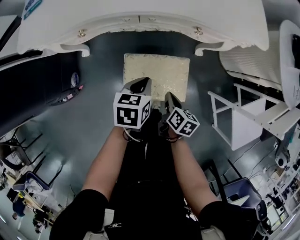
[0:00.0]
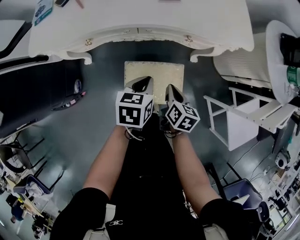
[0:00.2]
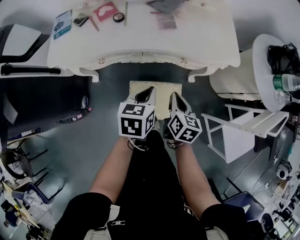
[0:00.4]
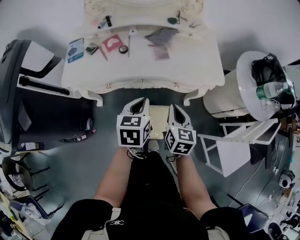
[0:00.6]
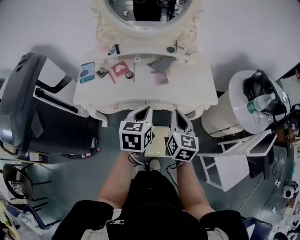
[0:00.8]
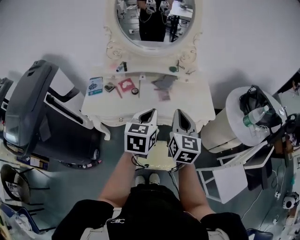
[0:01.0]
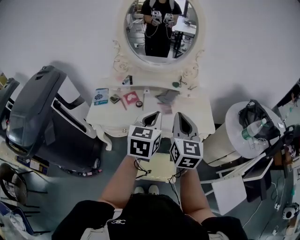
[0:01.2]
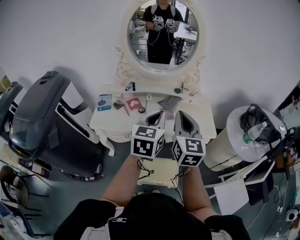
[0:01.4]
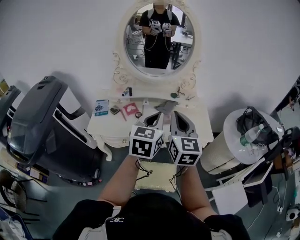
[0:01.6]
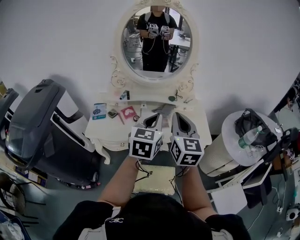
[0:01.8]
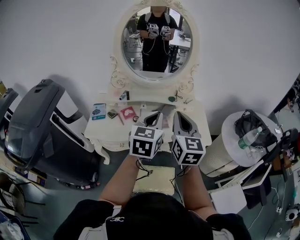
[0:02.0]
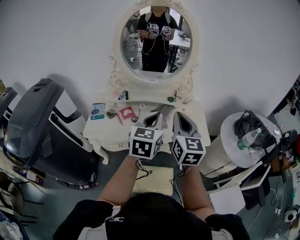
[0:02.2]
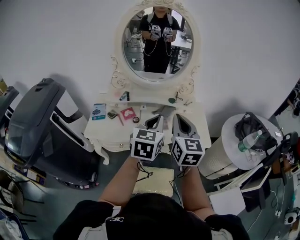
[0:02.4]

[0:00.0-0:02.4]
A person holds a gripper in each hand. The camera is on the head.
0:00.0 to 0:01.2: Both grippers travel together upward, about 50 cm. The left gripper angles its fingers upward, by about 30 degrees. The right gripper points its fingers roughly 40 degrees further upward.
0:01.2 to 0:02.4: The left gripper shifts by about 5 cm. Meanwhile the right gripper moves about 5 cm.

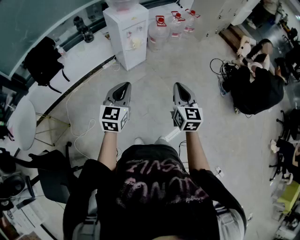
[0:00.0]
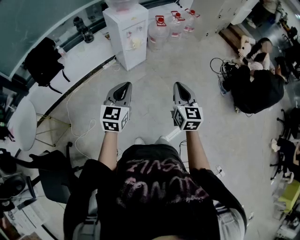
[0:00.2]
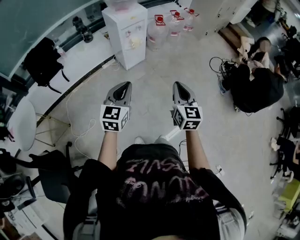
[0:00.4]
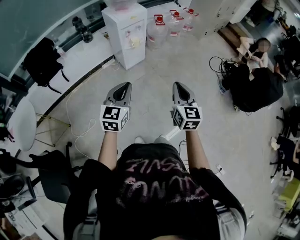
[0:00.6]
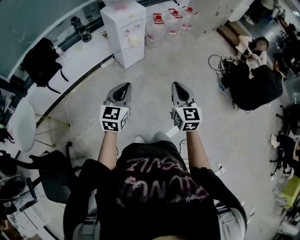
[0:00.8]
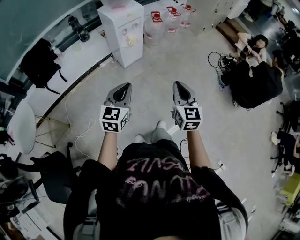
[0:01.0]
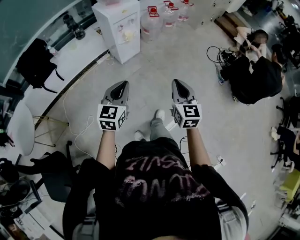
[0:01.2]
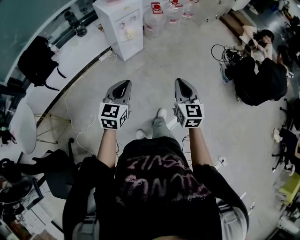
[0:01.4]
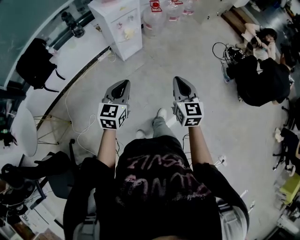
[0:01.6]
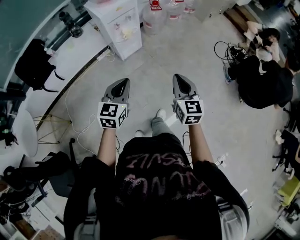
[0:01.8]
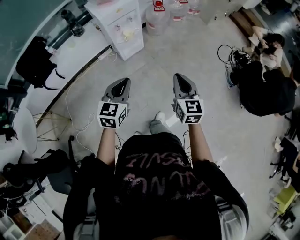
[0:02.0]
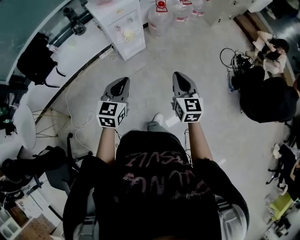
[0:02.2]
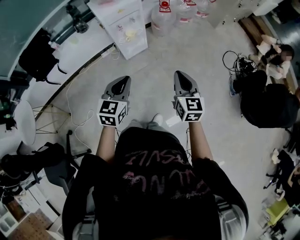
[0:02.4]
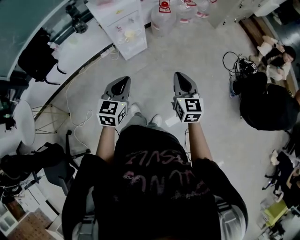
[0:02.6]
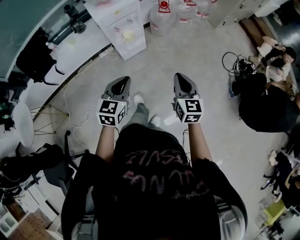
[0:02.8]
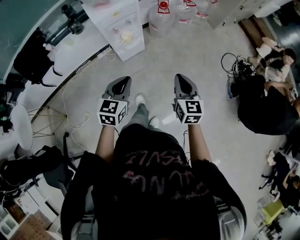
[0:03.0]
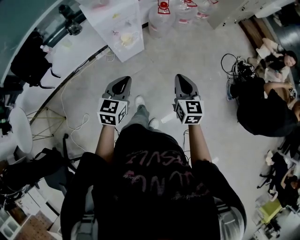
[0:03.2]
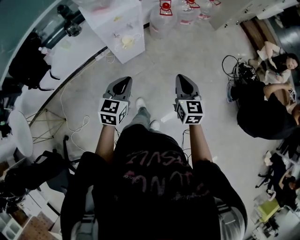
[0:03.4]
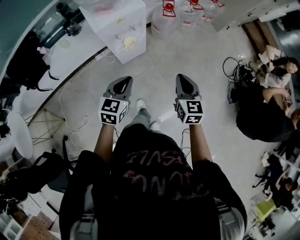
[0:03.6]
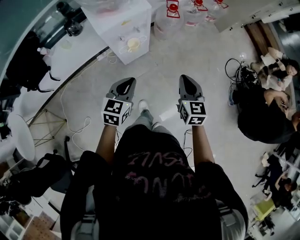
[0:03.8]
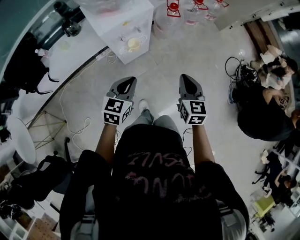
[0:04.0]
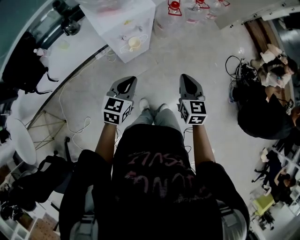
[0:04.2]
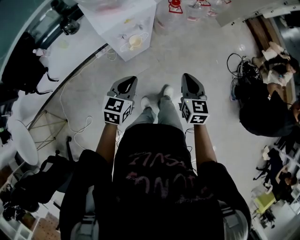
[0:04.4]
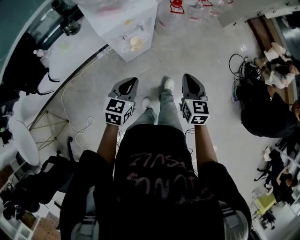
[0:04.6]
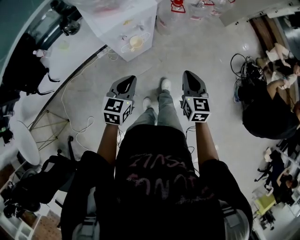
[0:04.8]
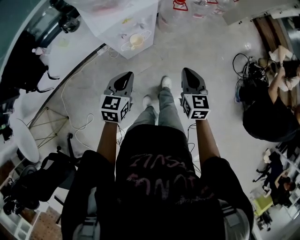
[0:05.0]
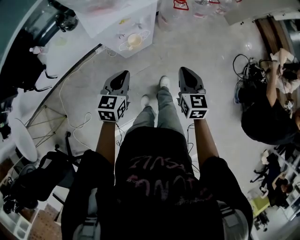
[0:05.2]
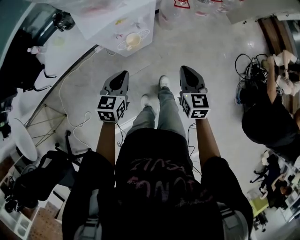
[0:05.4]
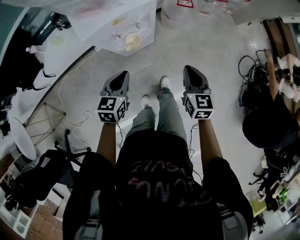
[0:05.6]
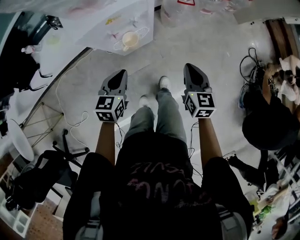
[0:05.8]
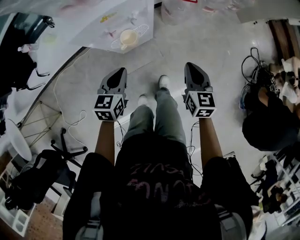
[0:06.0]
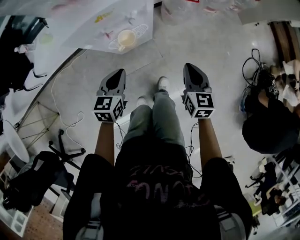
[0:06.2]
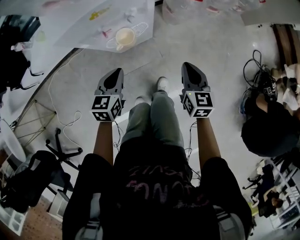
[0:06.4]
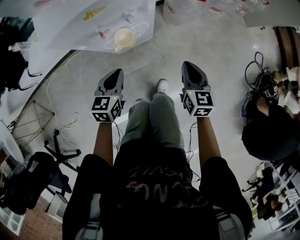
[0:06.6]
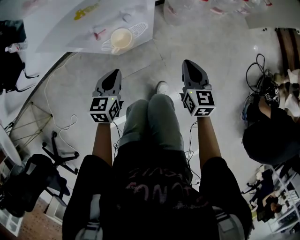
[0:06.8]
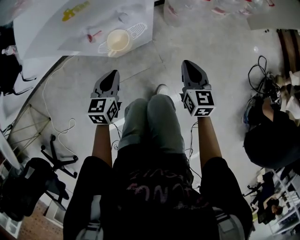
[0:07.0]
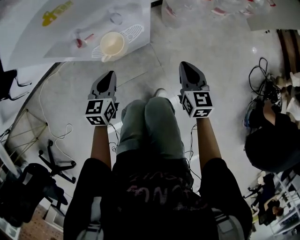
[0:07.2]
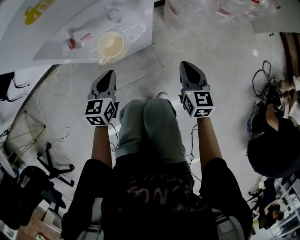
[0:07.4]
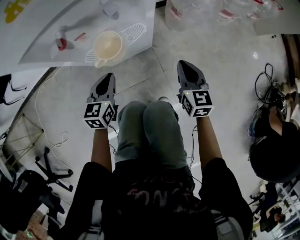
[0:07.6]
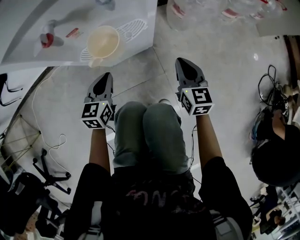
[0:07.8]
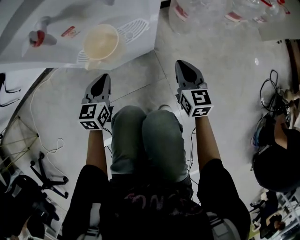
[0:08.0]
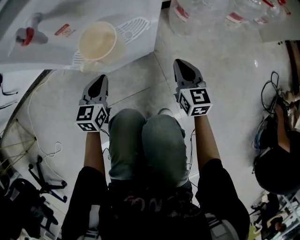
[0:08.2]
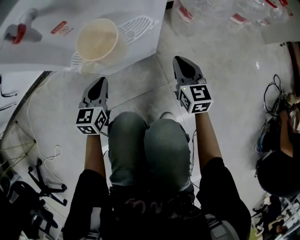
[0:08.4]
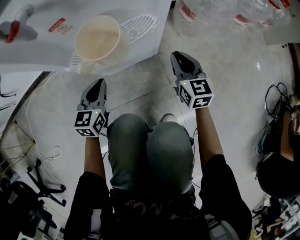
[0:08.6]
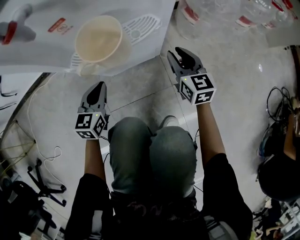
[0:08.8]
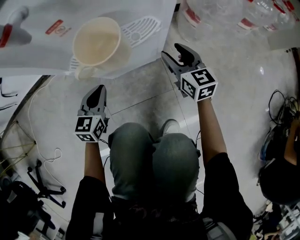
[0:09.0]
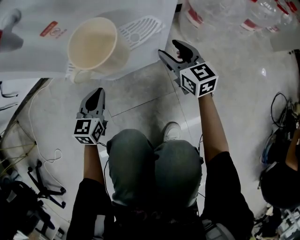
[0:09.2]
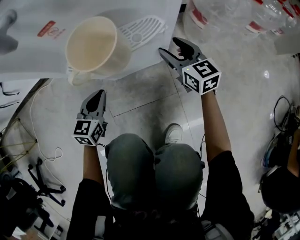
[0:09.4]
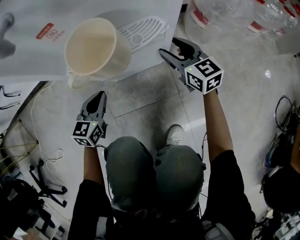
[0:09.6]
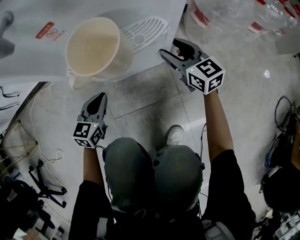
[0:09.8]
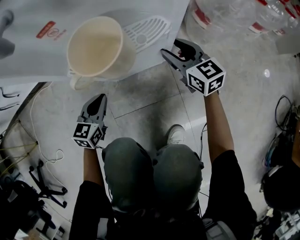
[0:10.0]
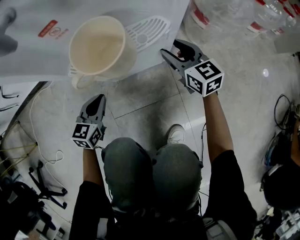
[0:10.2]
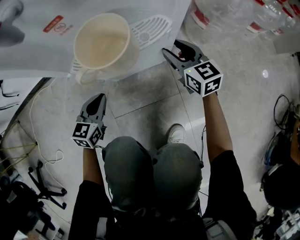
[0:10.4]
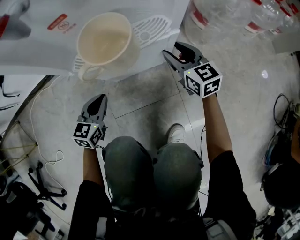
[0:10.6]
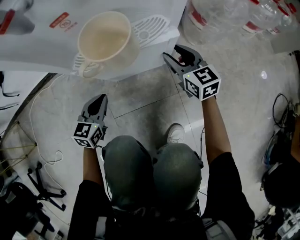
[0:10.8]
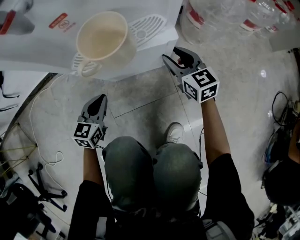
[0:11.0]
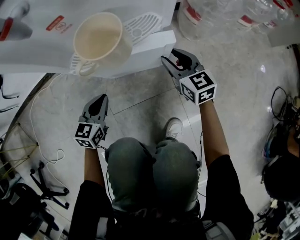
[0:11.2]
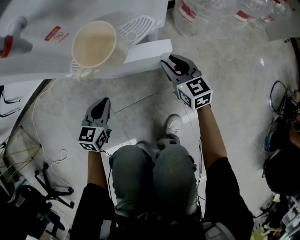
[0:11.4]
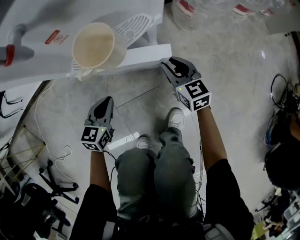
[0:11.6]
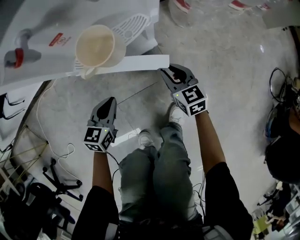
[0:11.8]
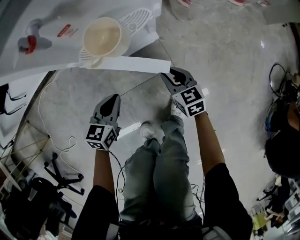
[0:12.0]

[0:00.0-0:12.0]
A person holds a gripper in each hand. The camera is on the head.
0:00.0 to 0:01.6: The two grippers go some 10 cm forward.
0:01.6 to 0:03.0: The right gripper travels forward by about 20 cm, while the left gripper shifts some 20 cm forward and to the right.
0:03.0 to 0:04.4: The two grippers go about 20 cm forward, to the left and downward.
0:04.4 to 0:06.0: The grippers both shift downward and forward by approximately 20 cm.
0:06.0 to 0:07.6: Both grippers move downward, about 30 cm.
0:07.6 to 0:09.0: The left gripper goes some 15 cm downward and to the left. Meanwhile the right gripper moves downward, forward and to the left, some 20 cm, and opens.
0:09.0 to 0:10.4: The grippers stay close to where they were, moving slightly.
0:10.4 to 0:12.0: The left gripper travels upward, backward and to the right by some 15 cm. Meanwhile the right gripper travels backward by roughly 20 cm, and closes.

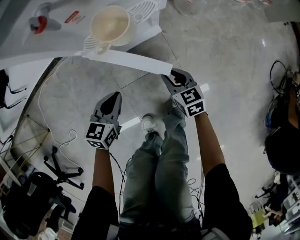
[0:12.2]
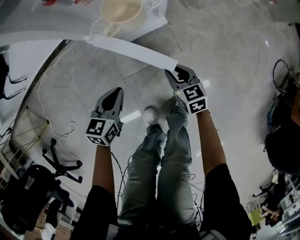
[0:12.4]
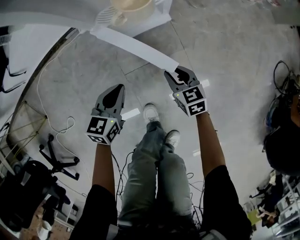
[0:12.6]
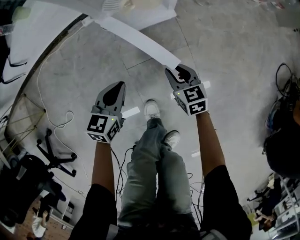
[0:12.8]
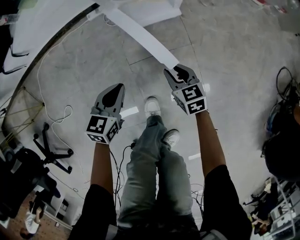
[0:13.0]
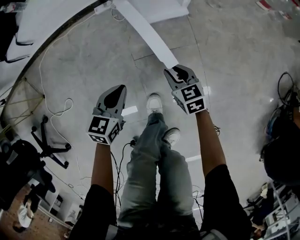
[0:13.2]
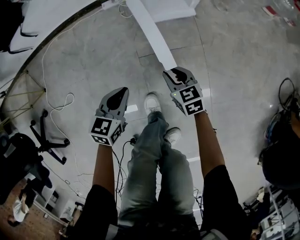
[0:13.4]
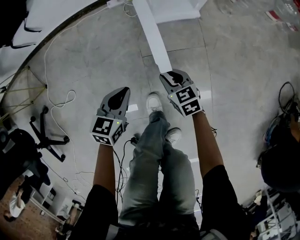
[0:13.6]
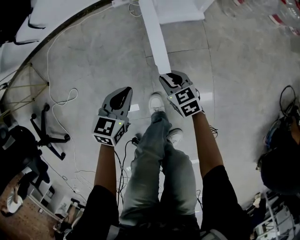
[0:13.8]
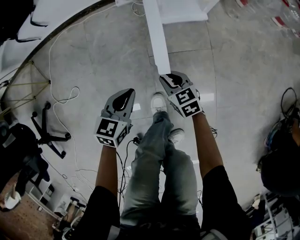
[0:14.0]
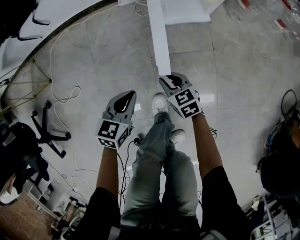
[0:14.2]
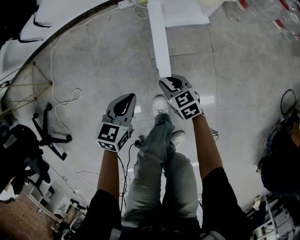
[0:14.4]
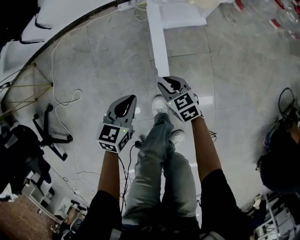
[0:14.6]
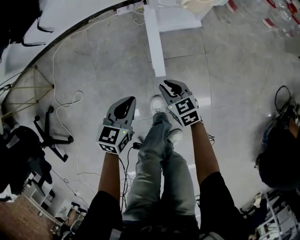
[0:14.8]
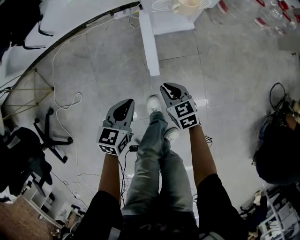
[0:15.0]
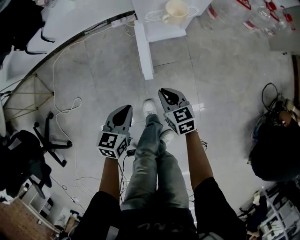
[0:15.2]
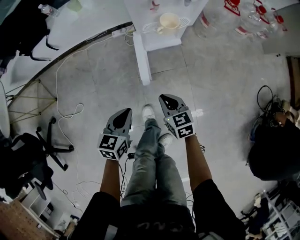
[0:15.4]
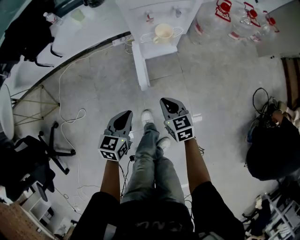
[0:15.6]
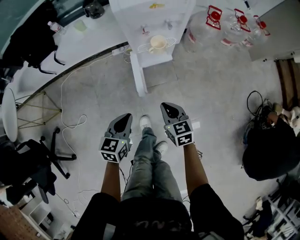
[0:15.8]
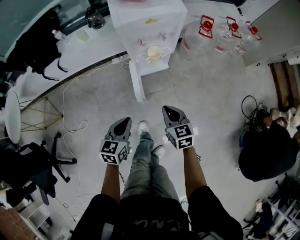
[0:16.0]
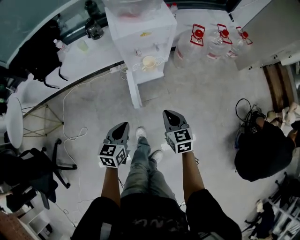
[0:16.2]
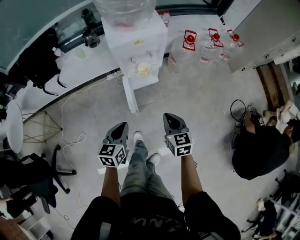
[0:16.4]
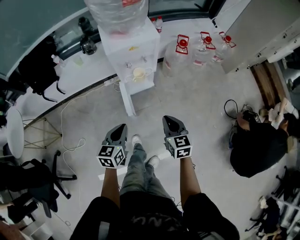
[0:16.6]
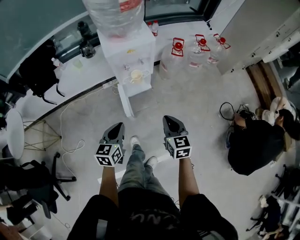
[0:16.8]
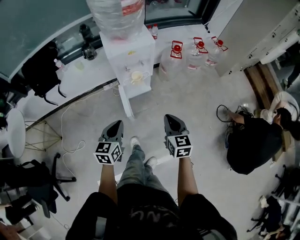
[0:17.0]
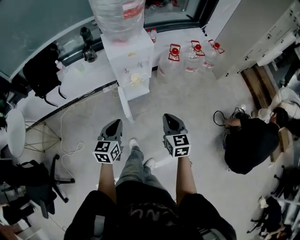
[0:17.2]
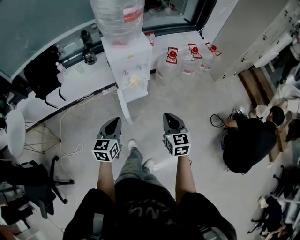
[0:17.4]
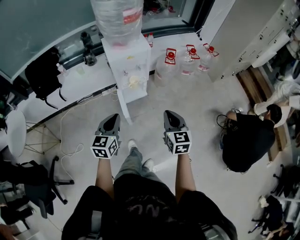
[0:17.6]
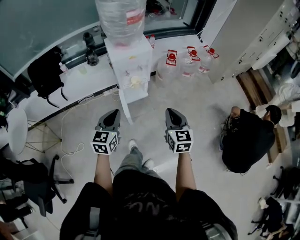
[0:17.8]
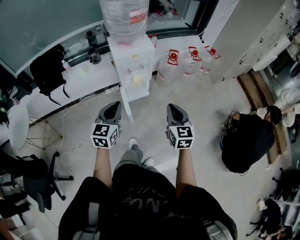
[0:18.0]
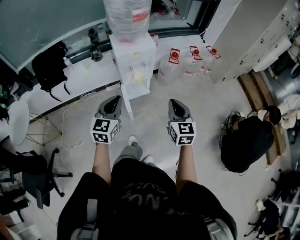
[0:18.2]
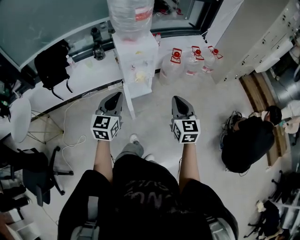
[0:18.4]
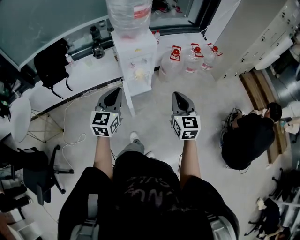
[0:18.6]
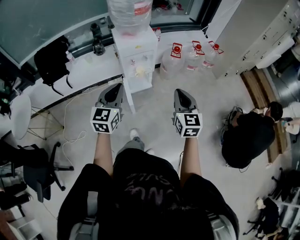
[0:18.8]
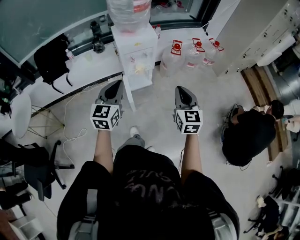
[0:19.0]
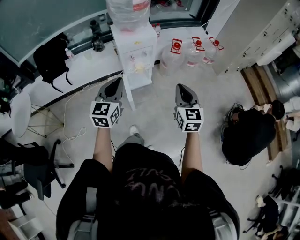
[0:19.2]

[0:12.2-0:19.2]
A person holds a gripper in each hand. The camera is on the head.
0:12.2 to 0:13.6: The right gripper moves to the left and backward, roughly 20 cm. The left gripper moves backward and to the left, about 20 cm.
0:13.6 to 0:15.0: Both grippers move upward, some 10 cm.
0:15.0 to 0:16.4: The two grippers go roughly 35 cm upward. The right gripper swivels approximately 30 degrees.
0:16.4 to 0:17.8: The left gripper travels upward by approximately 20 cm. Meanwhile the right gripper heads upward and backward, covering roughly 20 cm.
0:17.8 to 0:19.2: Both grippers move upward, roughly 5 cm.

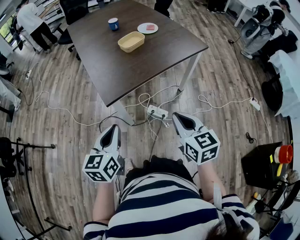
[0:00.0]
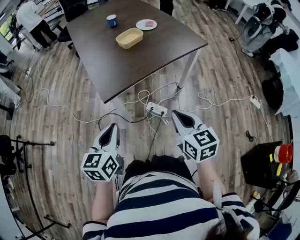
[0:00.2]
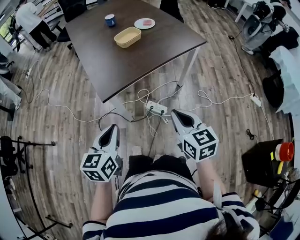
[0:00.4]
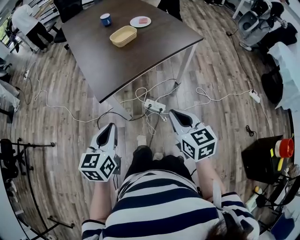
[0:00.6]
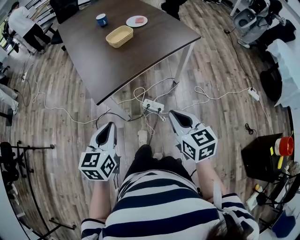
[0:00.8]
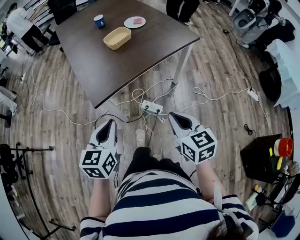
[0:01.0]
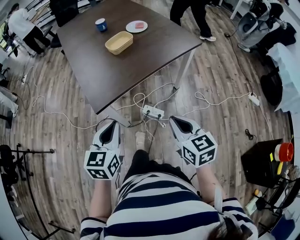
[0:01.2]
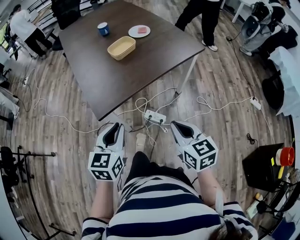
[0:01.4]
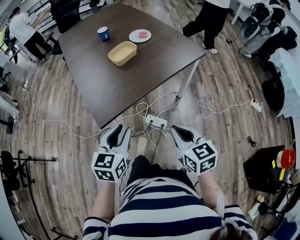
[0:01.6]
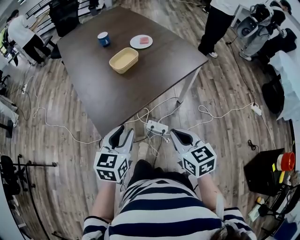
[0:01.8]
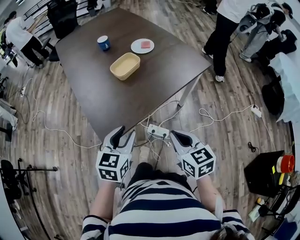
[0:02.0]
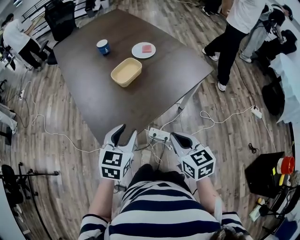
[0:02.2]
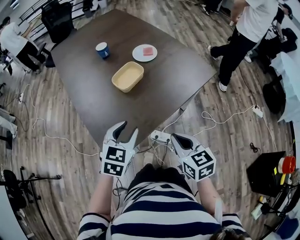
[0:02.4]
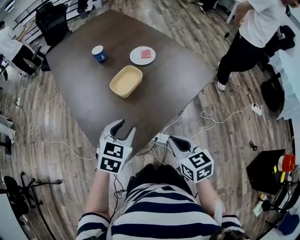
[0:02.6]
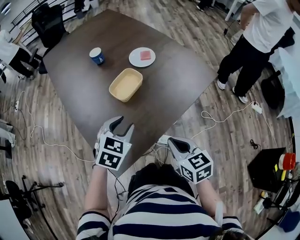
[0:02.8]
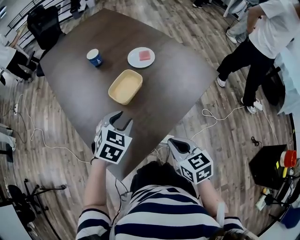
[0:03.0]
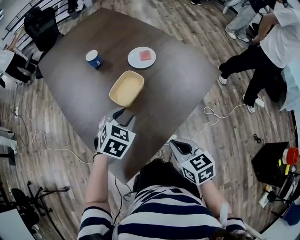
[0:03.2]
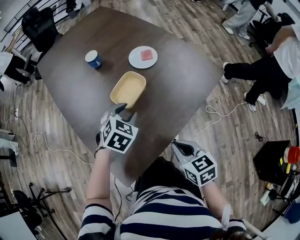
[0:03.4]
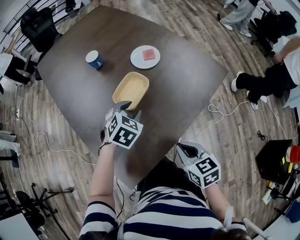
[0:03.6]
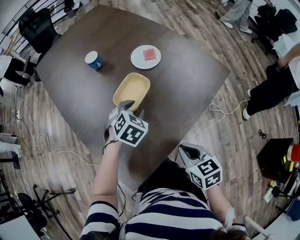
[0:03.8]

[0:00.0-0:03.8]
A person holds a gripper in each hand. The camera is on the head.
0:00.0 to 0:01.2: The left gripper moves to the right and forward, about 10 cm; the right gripper heads to the right, covering about 5 cm.
0:01.2 to 0:02.6: The two grippers go some 30 cm forward. The left gripper turns by about 30 degrees.
0:02.6 to 0:03.8: The right gripper heads forward and downward, covering approximately 10 cm, while the left gripper shifts roughly 20 cm forward and downward, and rotates roughly 20 degrees.
